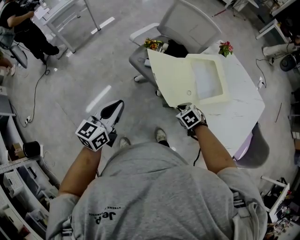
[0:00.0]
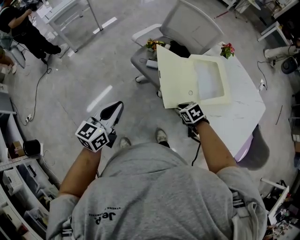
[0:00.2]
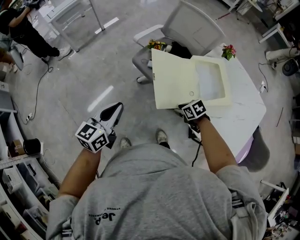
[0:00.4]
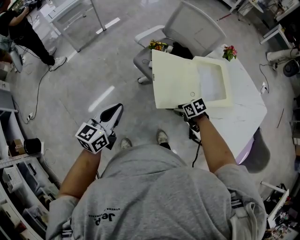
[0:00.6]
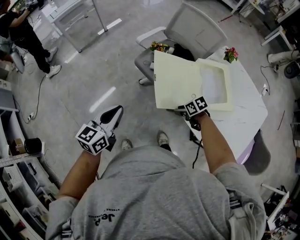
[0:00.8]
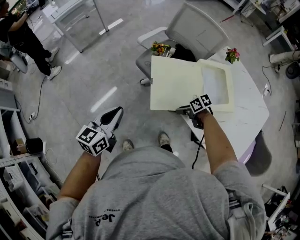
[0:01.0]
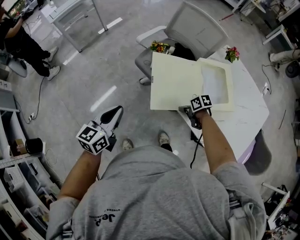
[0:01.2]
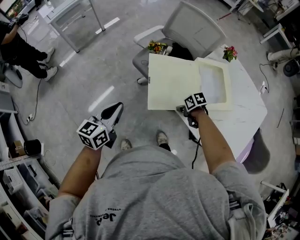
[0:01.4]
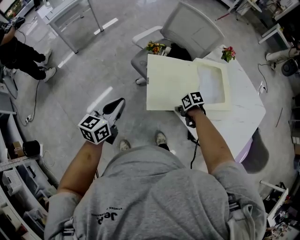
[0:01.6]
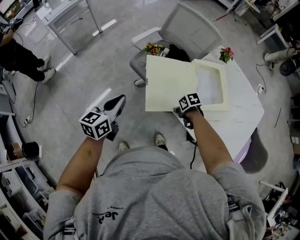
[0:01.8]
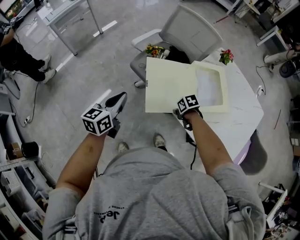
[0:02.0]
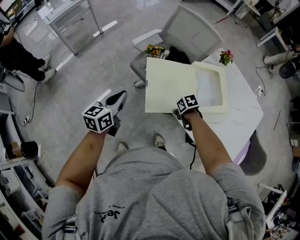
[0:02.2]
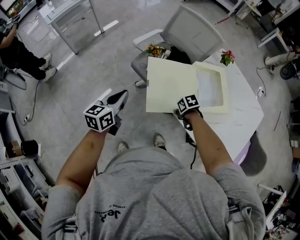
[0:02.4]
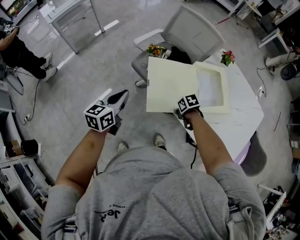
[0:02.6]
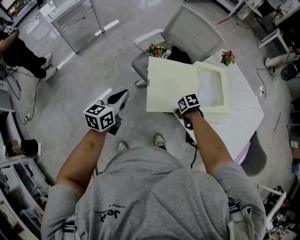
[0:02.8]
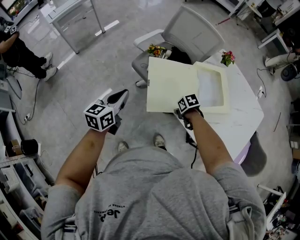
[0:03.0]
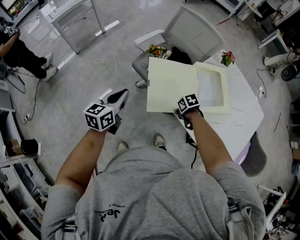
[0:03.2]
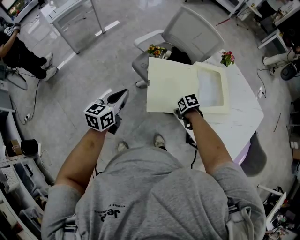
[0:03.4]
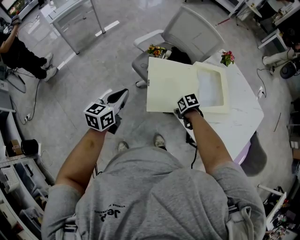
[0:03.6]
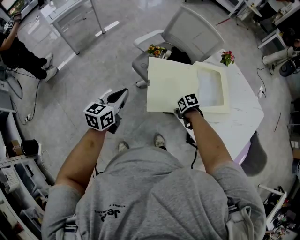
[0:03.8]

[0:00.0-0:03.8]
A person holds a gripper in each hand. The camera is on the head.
0:00.0 to 0:01.2: The right gripper changes place by approximately 5 cm, and changes its angle by about 50 degrees.
0:01.2 to 0:02.6: The left gripper is displaced forward and to the right by roughly 10 cm.
0:02.6 to 0:03.8: The two grippers keep their place.

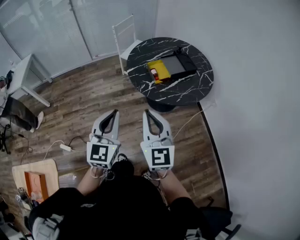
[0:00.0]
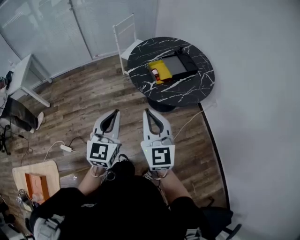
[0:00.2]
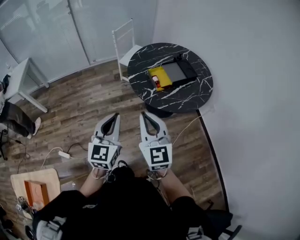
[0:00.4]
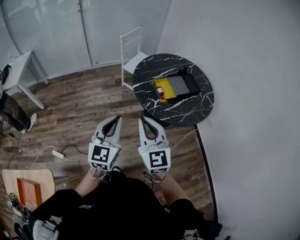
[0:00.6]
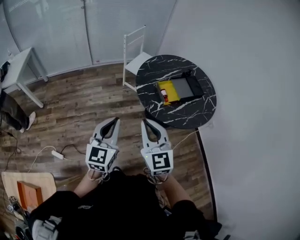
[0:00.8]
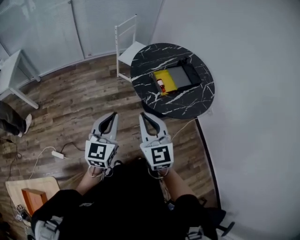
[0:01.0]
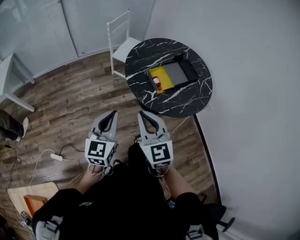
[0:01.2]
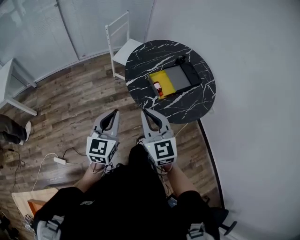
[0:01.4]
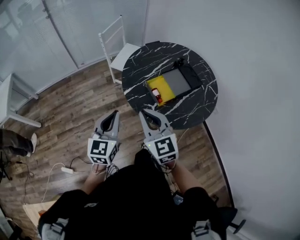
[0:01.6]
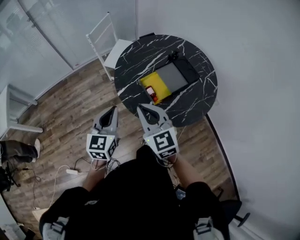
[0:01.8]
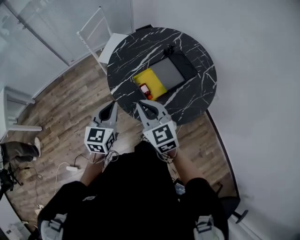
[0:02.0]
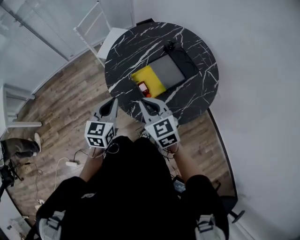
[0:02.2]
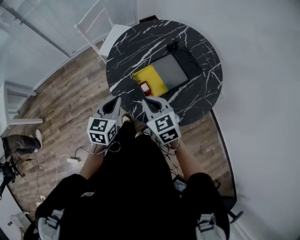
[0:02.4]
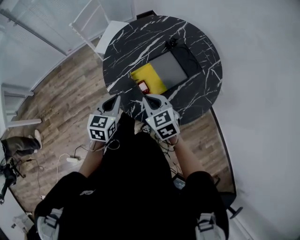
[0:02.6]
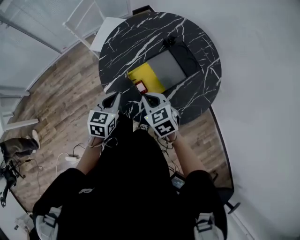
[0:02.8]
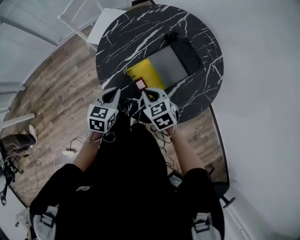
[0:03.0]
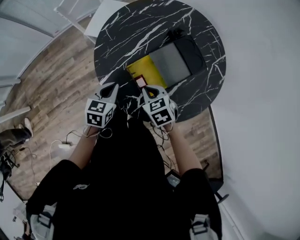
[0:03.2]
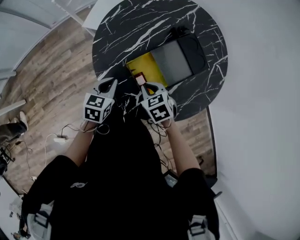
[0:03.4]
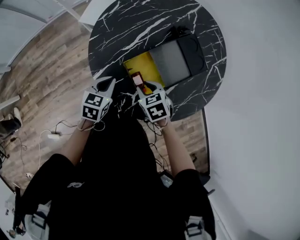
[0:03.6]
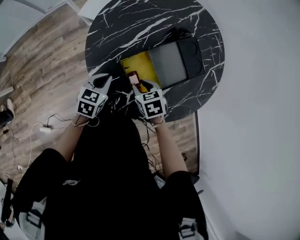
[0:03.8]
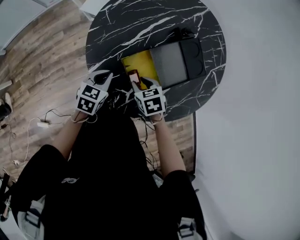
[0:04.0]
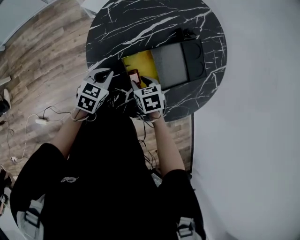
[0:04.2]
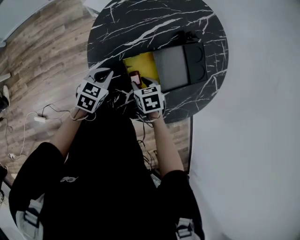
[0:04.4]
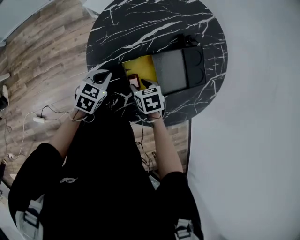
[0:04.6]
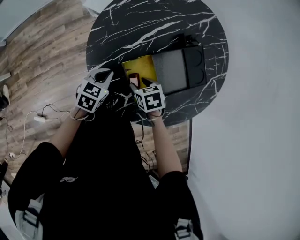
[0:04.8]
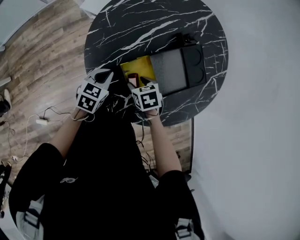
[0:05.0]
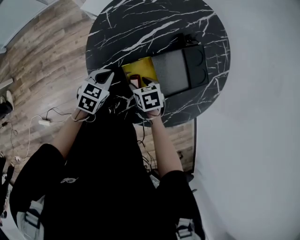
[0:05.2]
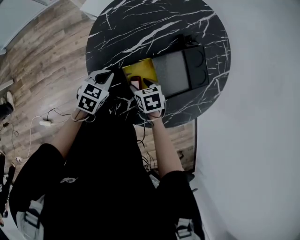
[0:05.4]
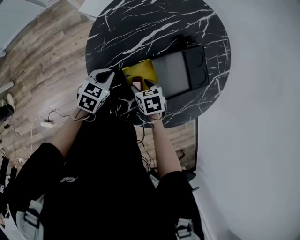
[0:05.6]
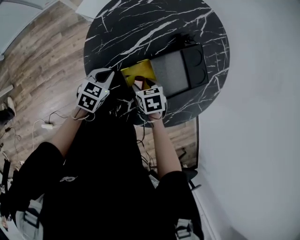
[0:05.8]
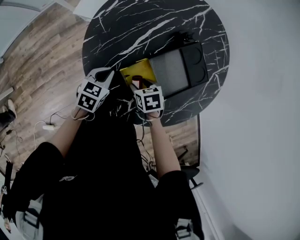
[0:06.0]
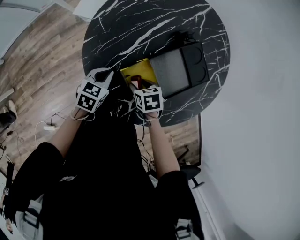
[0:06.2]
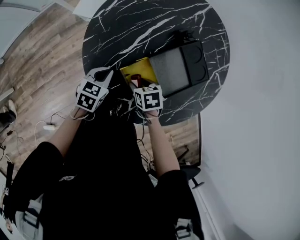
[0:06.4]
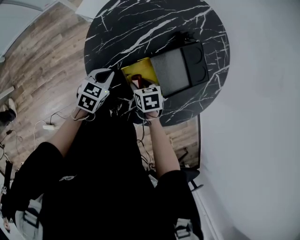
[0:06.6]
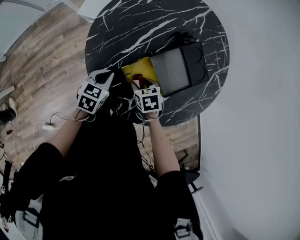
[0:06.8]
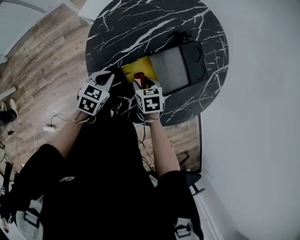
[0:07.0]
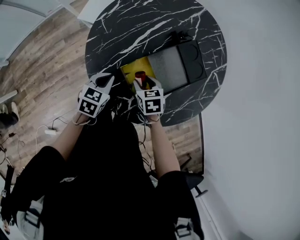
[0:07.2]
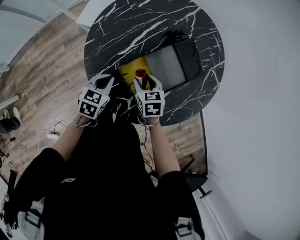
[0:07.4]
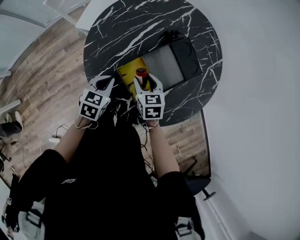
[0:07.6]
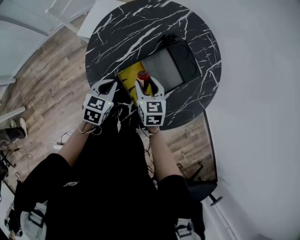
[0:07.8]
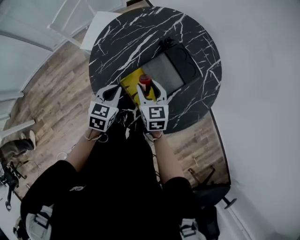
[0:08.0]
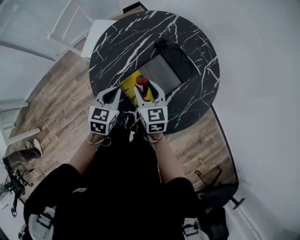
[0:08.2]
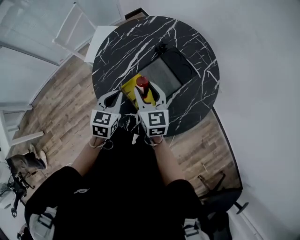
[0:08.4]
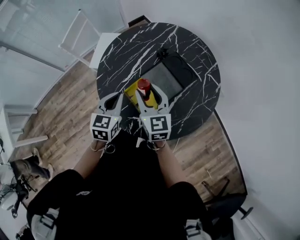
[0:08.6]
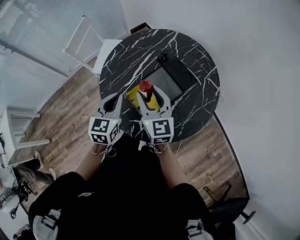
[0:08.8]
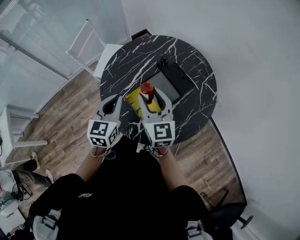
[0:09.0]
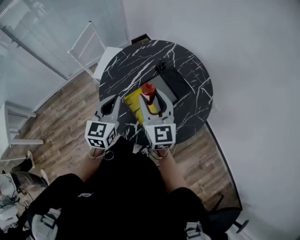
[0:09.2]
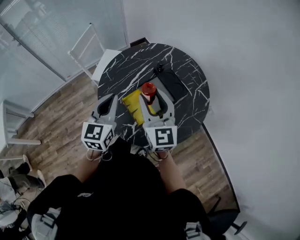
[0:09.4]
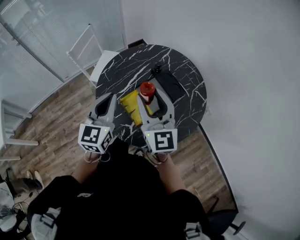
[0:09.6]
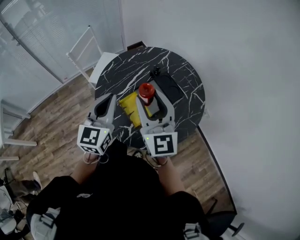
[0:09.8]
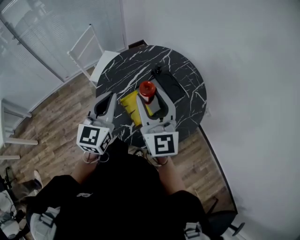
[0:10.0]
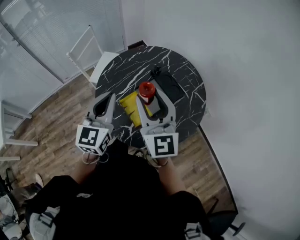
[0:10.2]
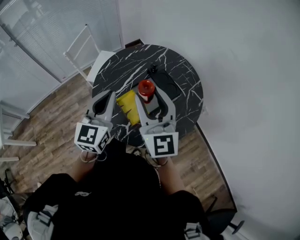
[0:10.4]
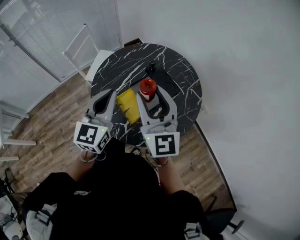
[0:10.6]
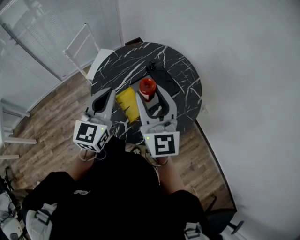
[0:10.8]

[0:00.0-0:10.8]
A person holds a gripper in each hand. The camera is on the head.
0:00.0 to 0:01.6: The grippers both shift forward by about 25 cm.
0:01.6 to 0:03.0: The left gripper heads forward, downward and to the right, covering about 30 cm, and changes its angle by approximately 30 degrees, while the right gripper is displaced downward, forward and to the right by some 30 cm, and tips its fingers downward by approximately 30 degrees.
0:03.0 to 0:04.6: The left gripper travels downward and forward by about 10 cm; the right gripper goes roughly 15 cm downward, turns by roughly 30 degrees, and opens.
0:04.6 to 0:06.2: The left gripper moves roughly 5 cm.
0:06.2 to 0:07.8: The left gripper goes about 5 cm upward; the right gripper moves upward, about 10 cm, and points its fingers about 30 degrees further upward.
0:07.8 to 0:09.2: The two grippers go roughly 20 cm upward. The left gripper turns by roughly 30 degrees. The right gripper tilts its fingers roughly 30 degrees upward.
0:09.2 to 0:10.8: Both grippers travel together upward, roughly 10 cm.

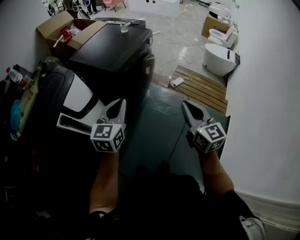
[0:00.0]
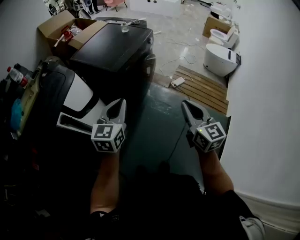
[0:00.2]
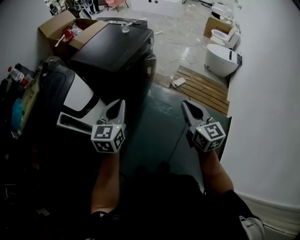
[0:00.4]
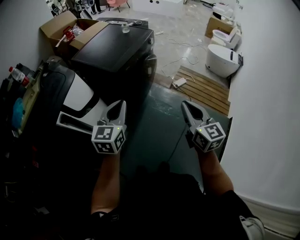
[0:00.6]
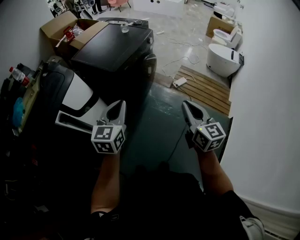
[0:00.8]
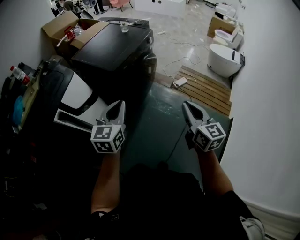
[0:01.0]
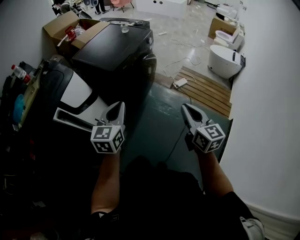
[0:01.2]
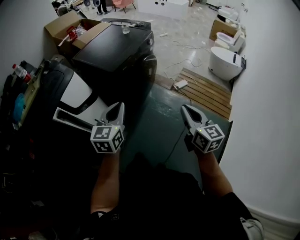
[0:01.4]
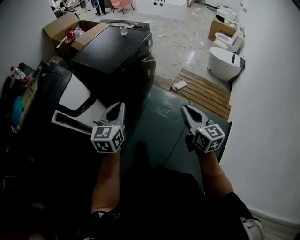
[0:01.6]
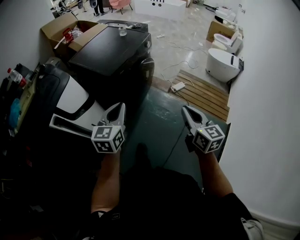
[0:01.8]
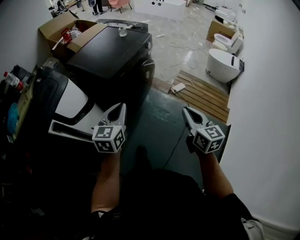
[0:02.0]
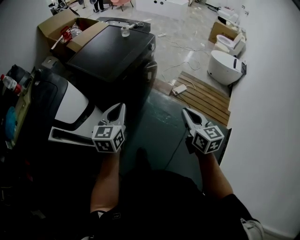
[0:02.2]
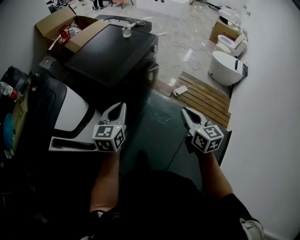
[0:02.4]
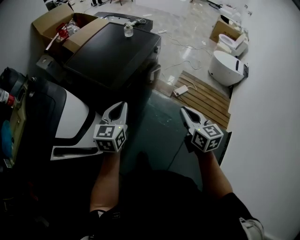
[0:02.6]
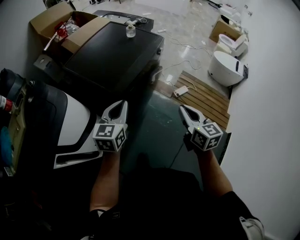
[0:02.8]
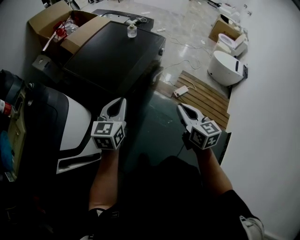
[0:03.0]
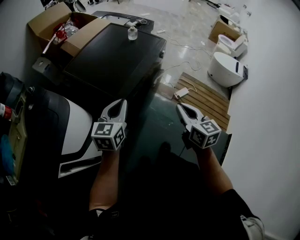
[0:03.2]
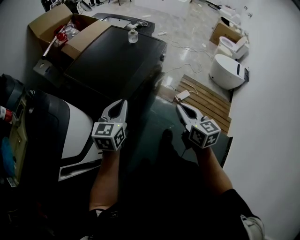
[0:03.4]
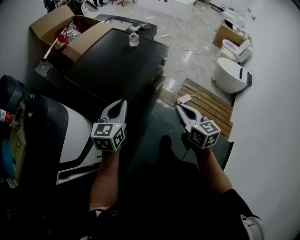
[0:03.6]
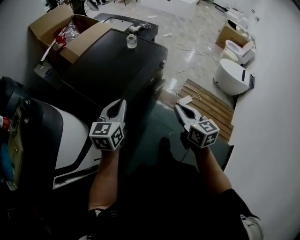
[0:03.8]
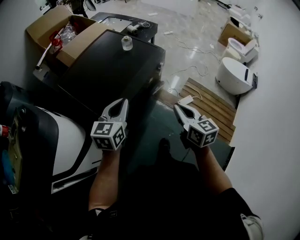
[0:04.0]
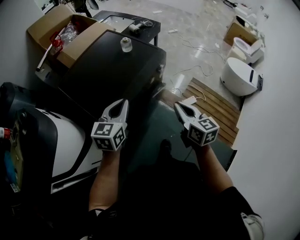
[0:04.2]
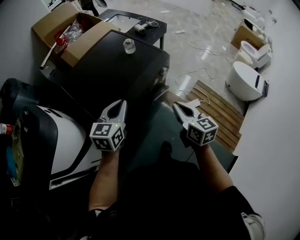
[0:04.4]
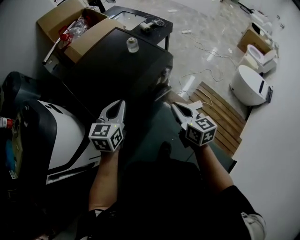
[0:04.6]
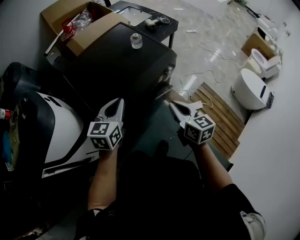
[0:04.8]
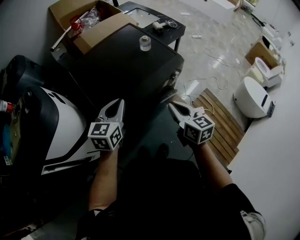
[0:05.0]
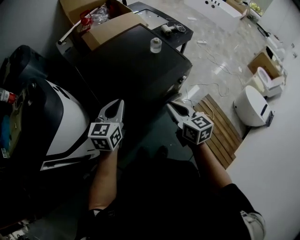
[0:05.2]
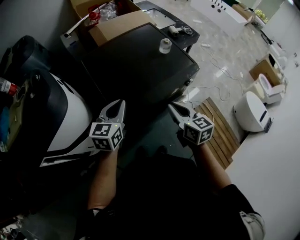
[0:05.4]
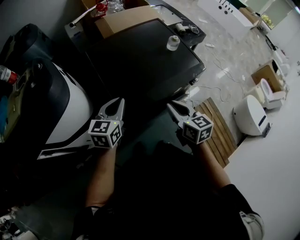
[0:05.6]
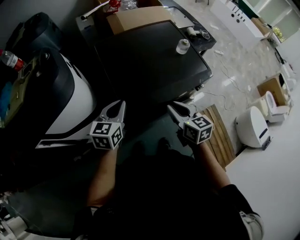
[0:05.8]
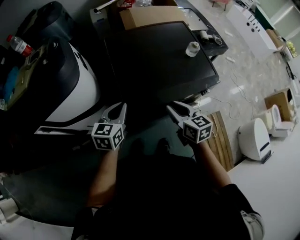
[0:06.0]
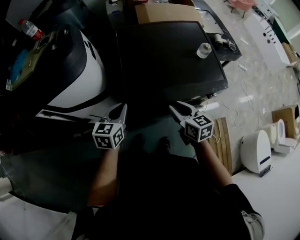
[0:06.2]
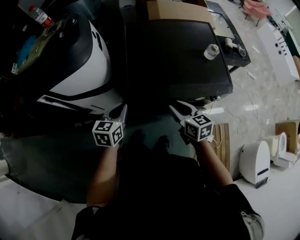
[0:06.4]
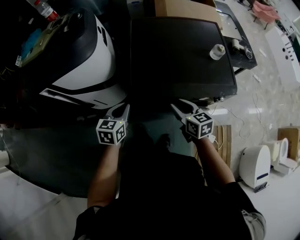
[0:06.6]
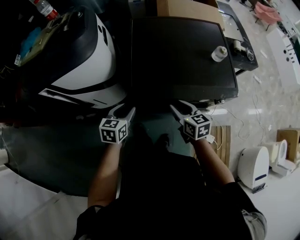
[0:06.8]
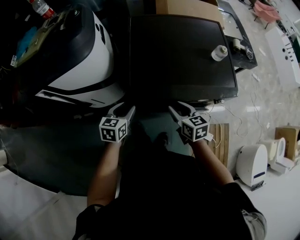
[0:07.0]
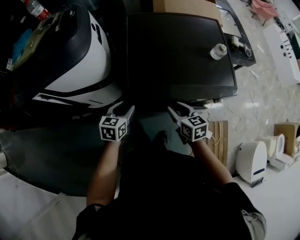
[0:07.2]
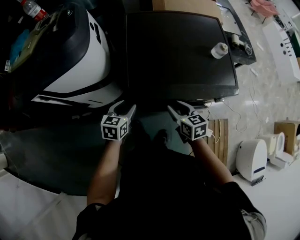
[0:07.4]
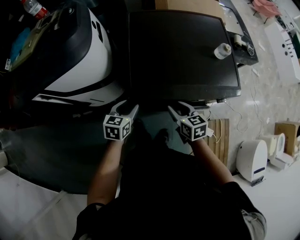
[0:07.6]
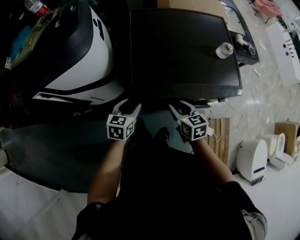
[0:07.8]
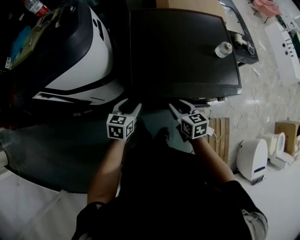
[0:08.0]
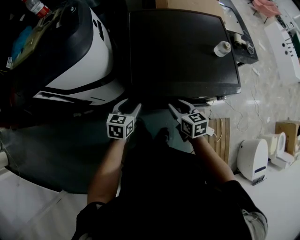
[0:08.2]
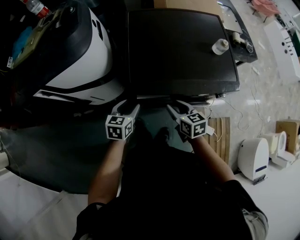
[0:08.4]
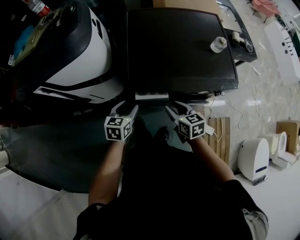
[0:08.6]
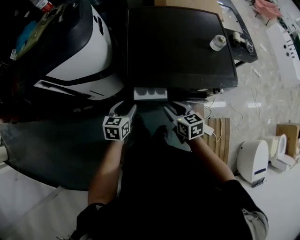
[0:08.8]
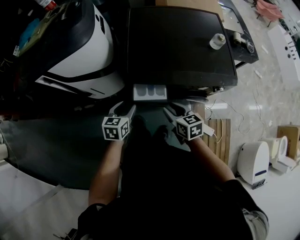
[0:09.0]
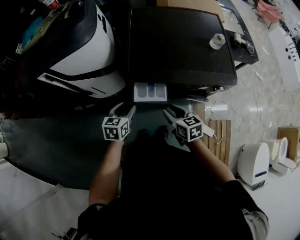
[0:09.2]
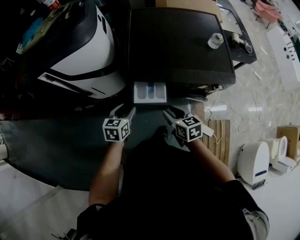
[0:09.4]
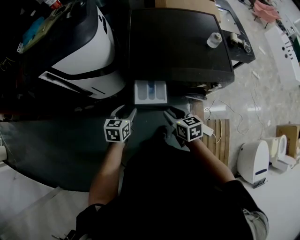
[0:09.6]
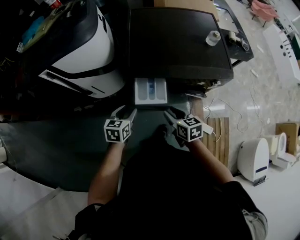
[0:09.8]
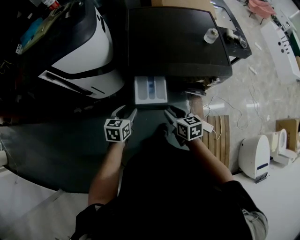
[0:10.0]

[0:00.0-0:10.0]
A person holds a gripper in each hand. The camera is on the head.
0:00.0 to 0:01.4: Both grippers travel together to the right, roughly 10 cm.
0:01.4 to 0:02.8: The grippers both shift forward by about 30 cm.
0:02.8 to 0:04.2: The right gripper travels forward by approximately 25 cm. The left gripper moves forward and to the right, approximately 25 cm.
0:04.2 to 0:05.8: The left gripper shifts by approximately 15 cm, and changes its angle by some 30 degrees; the right gripper shifts by roughly 20 cm, and turns by about 30 degrees.
0:05.8 to 0:07.2: The two grippers go roughly 15 cm downward. The right gripper swivels about 20 degrees. The left gripper swivels about 20 degrees, and opens up.
0:07.2 to 0:08.6: The grippers make only small movements.
0:08.6 to 0:10.0: Both grippers move backward, roughly 10 cm.
